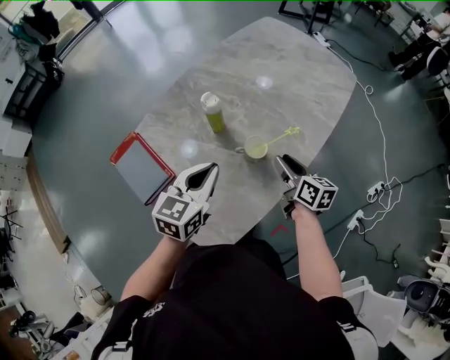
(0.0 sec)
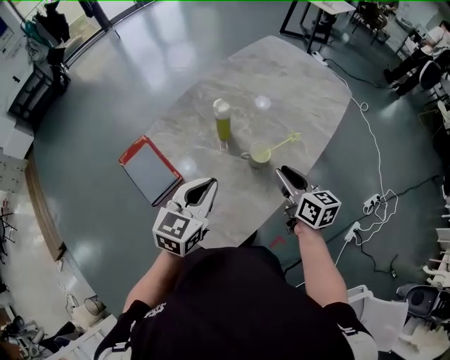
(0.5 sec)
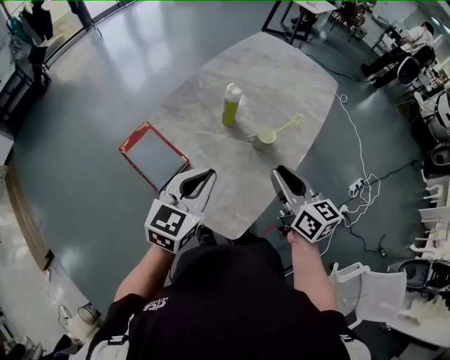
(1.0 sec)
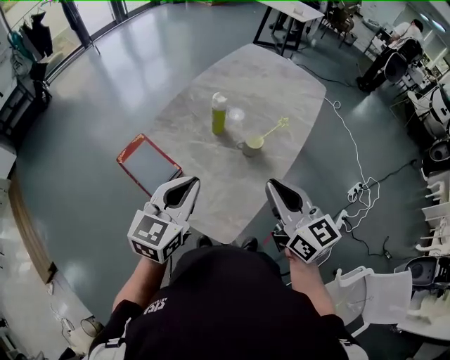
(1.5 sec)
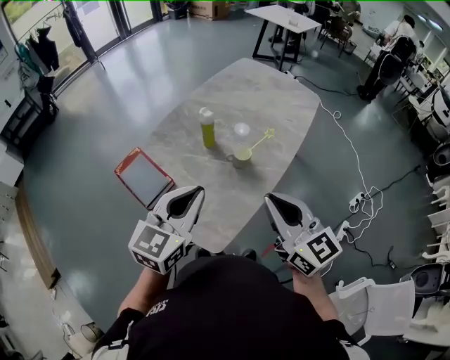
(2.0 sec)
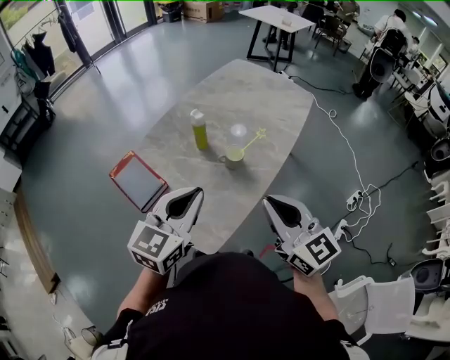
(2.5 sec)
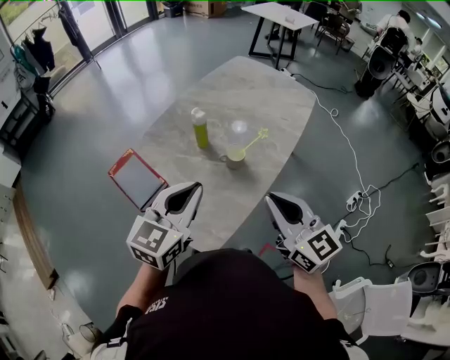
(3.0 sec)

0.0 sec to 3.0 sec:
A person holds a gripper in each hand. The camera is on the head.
0.0 sec to 1.5 sec: The right gripper moves upward, backward and to the left, about 35 cm, rotates approximately 30 degrees, and closes its fingers, while the left gripper is displaced backward, upward and to the left by some 20 cm.
1.5 sec to 3.0 sec: Both grippers travel together to the right, roughly 10 cm.

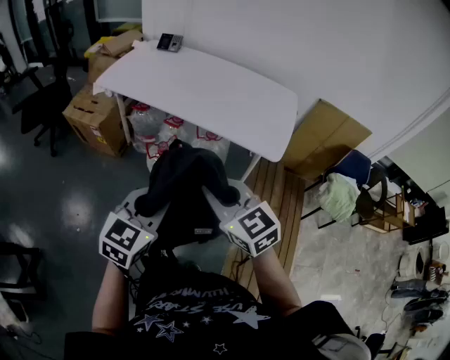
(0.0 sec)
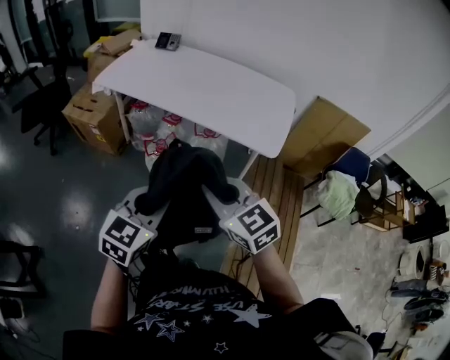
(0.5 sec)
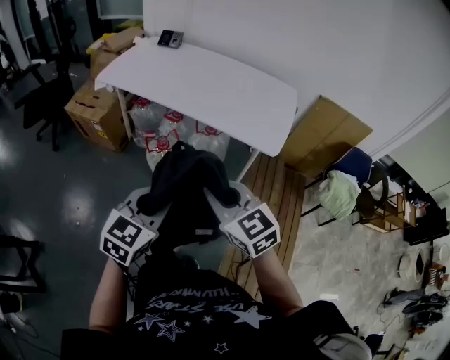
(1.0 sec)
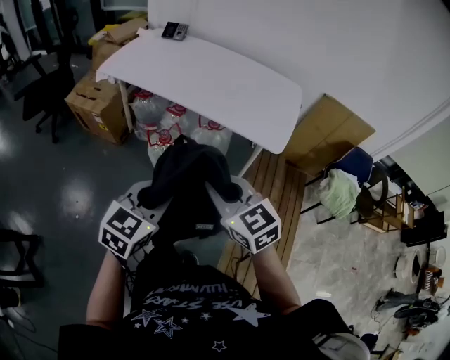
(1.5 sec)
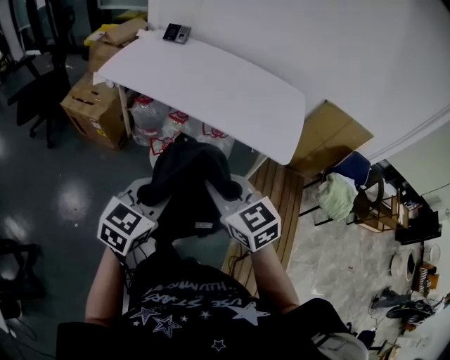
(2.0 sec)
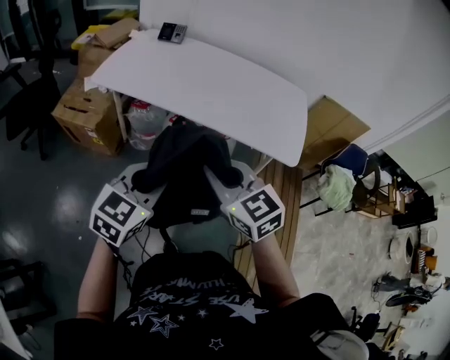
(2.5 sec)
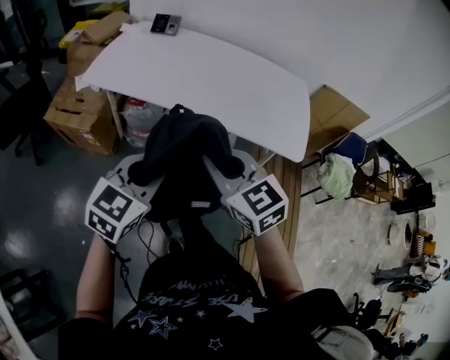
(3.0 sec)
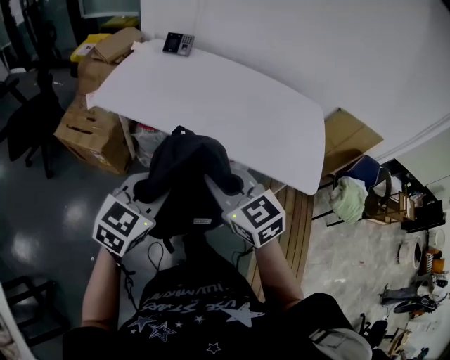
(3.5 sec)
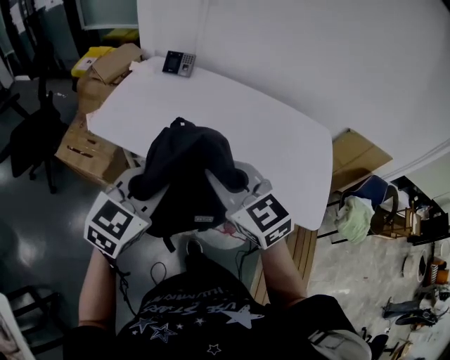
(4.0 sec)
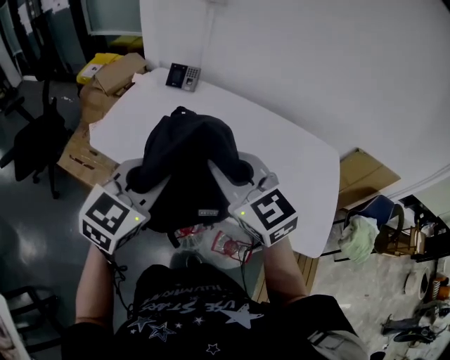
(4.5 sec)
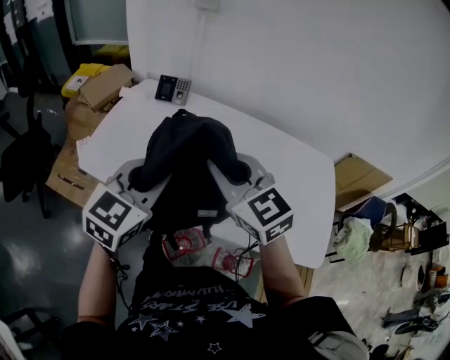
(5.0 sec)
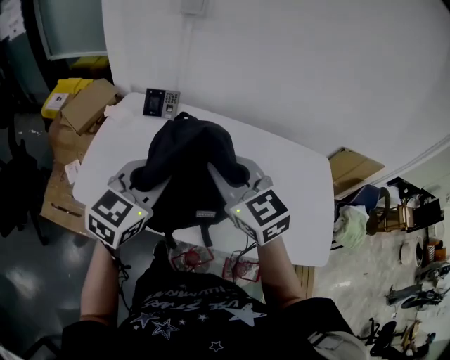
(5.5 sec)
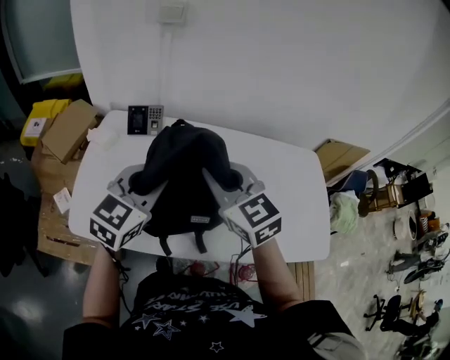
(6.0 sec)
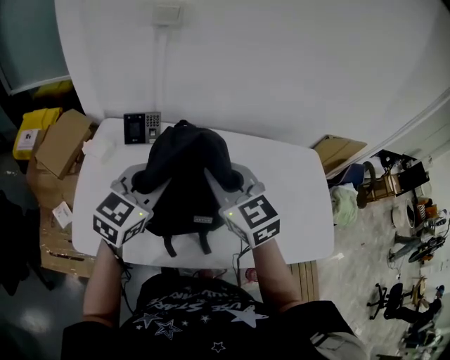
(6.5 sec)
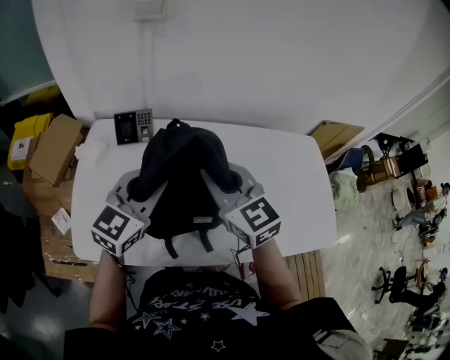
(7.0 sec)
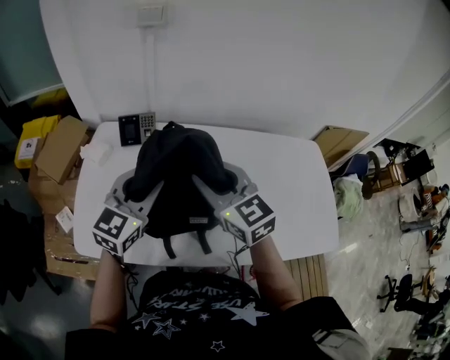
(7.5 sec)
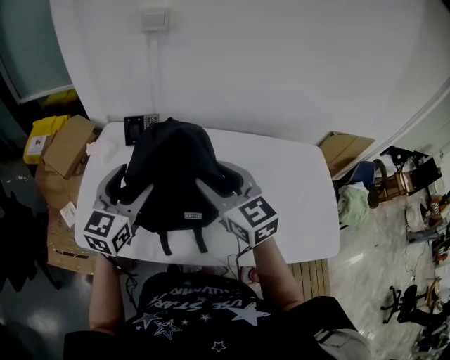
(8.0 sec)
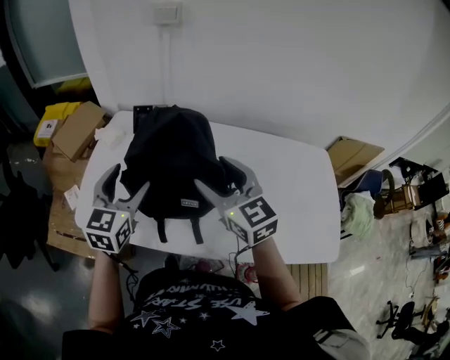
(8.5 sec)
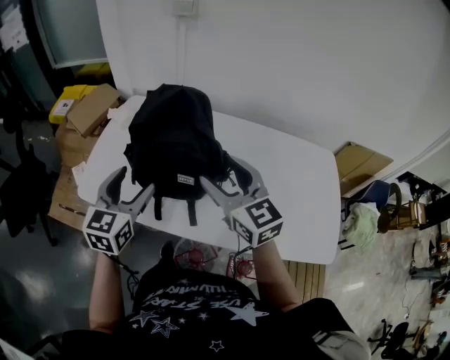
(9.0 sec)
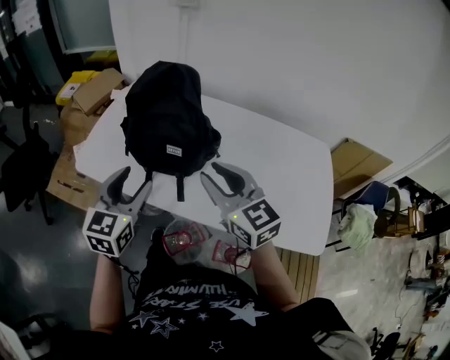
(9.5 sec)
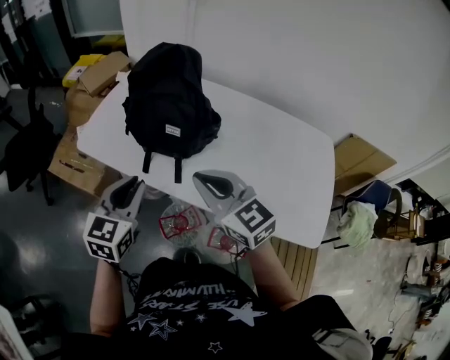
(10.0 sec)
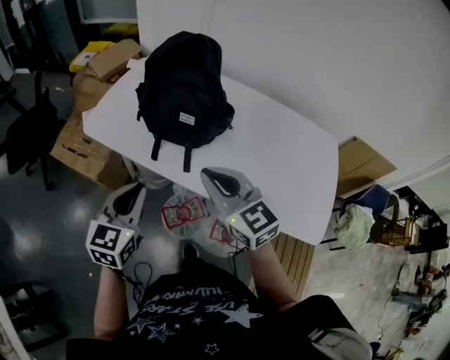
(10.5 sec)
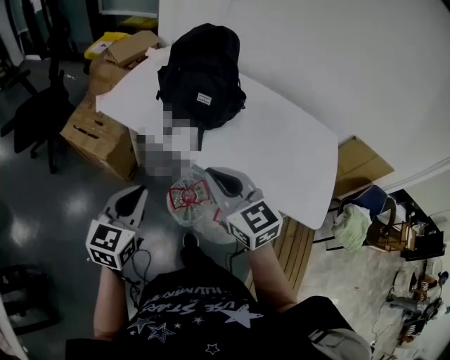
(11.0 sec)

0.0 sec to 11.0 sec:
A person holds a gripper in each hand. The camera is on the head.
0.0 sec to 2.0 sec: The left gripper goes roughly 5 cm forward. The right gripper shifts by approximately 5 cm.
2.0 sec to 3.5 sec: Both grippers move forward and to the left, approximately 25 cm.
3.5 sec to 5.5 sec: The grippers both shift forward by some 40 cm.
5.5 sec to 7.5 sec: The grippers both shift forward by approximately 10 cm. The right gripper opens its fingers.
7.5 sec to 9.0 sec: The right gripper heads backward and to the right, covering approximately 10 cm, and opens up, while the left gripper travels backward by about 15 cm, changes its angle by roughly 30 degrees, and opens.
9.0 sec to 11.0 sec: The two grippers go roughly 30 cm backward. The right gripper closes its fingers. The left gripper closes up.

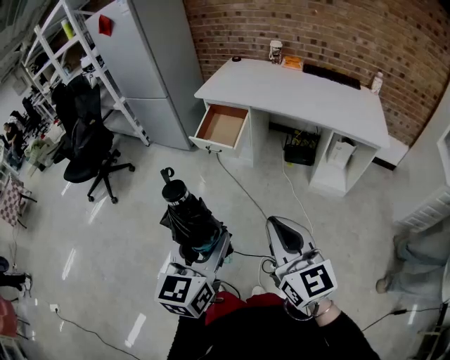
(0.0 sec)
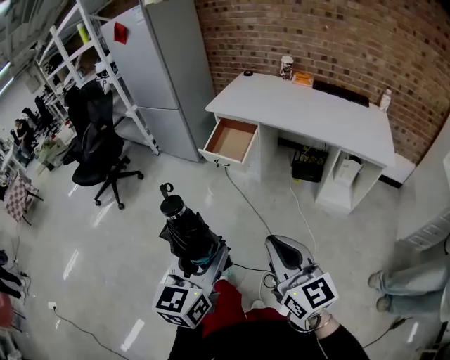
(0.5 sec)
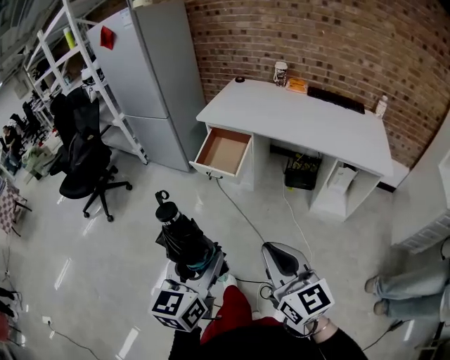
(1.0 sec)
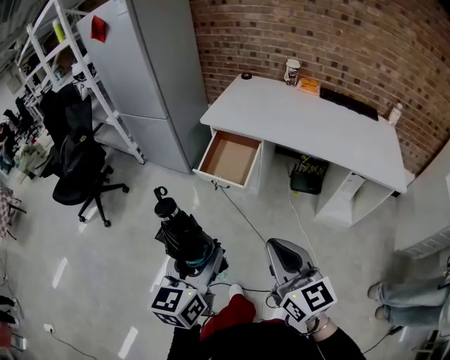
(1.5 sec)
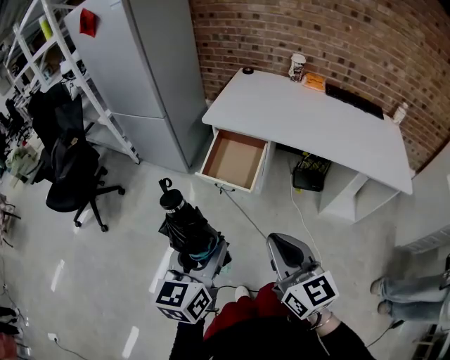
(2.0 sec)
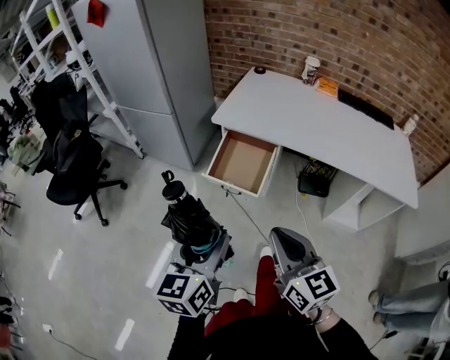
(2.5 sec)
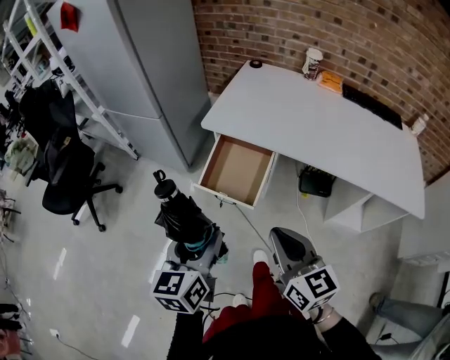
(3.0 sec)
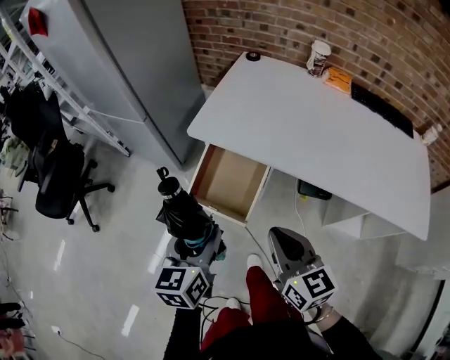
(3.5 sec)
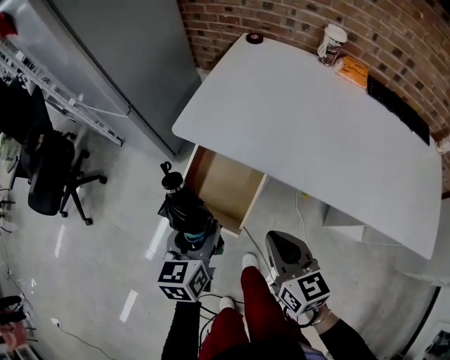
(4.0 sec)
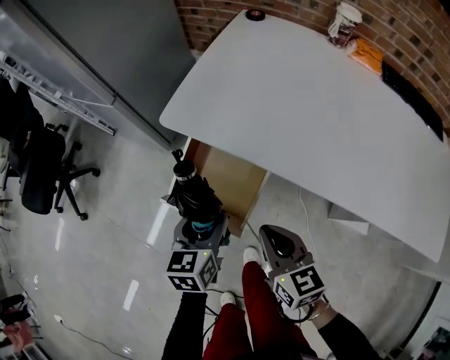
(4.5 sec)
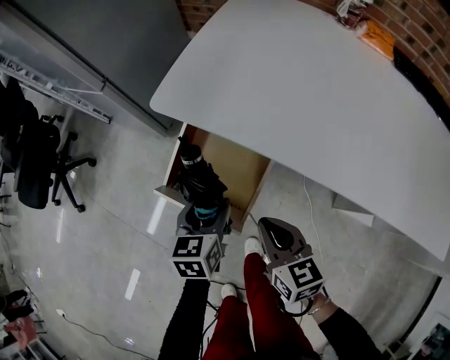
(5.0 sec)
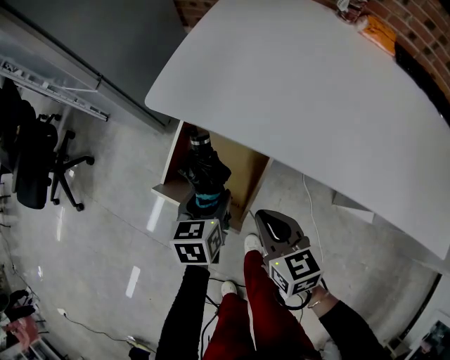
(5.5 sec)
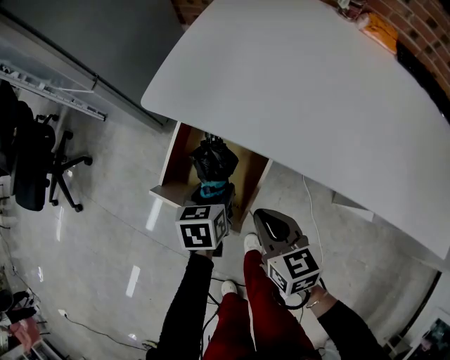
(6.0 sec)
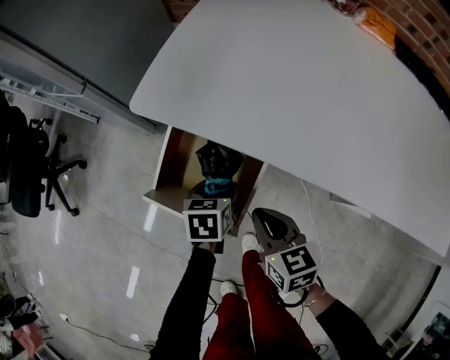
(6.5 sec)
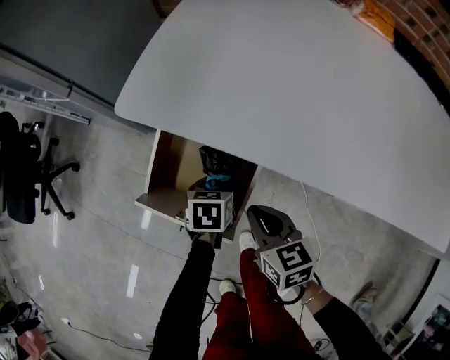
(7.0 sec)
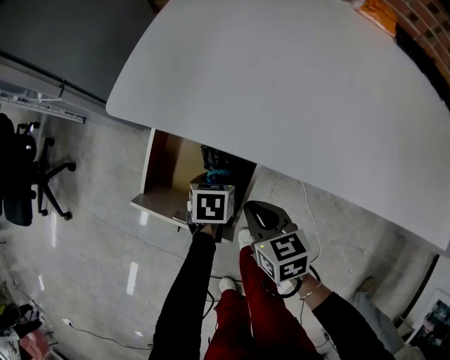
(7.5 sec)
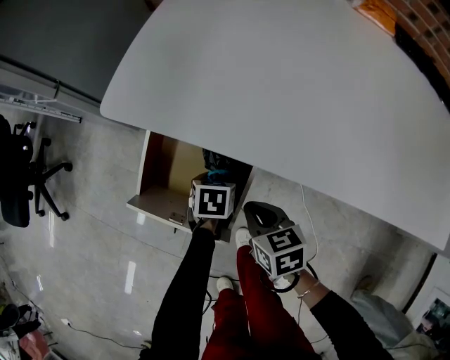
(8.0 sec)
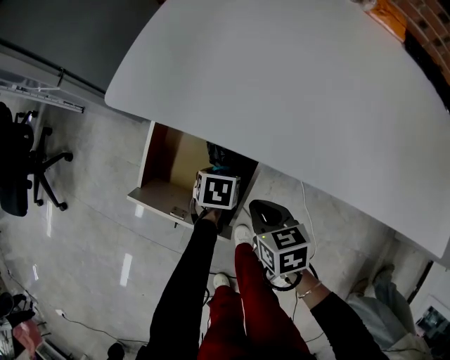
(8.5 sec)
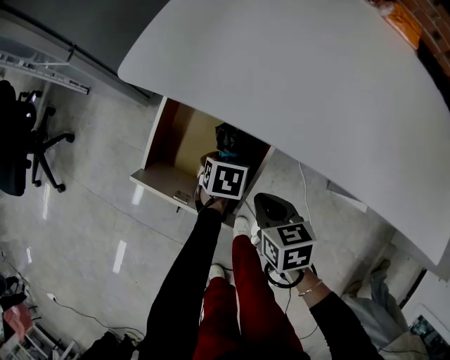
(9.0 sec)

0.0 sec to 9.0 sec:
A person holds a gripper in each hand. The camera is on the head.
0.0 sec to 2.0 sec: The grippers both shift forward by roughly 25 cm.
2.0 sec to 4.5 sec: Both grippers travel together forward and downward, approximately 40 cm. The right gripper turns by some 20 degrees, while the left gripper swivels about 20 degrees.
4.5 sec to 7.0 sec: The left gripper moves downward, roughly 20 cm, and changes its angle by roughly 30 degrees. The right gripper moves downward, some 10 cm.
7.0 sec to 9.0 sec: Both grippers travel together downward, about 5 cm.

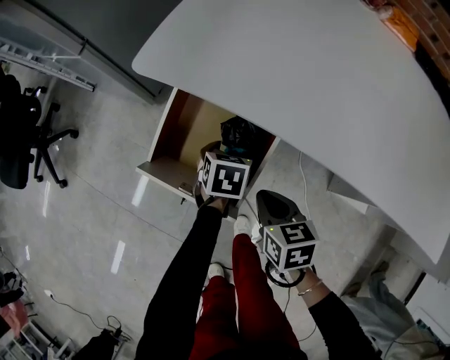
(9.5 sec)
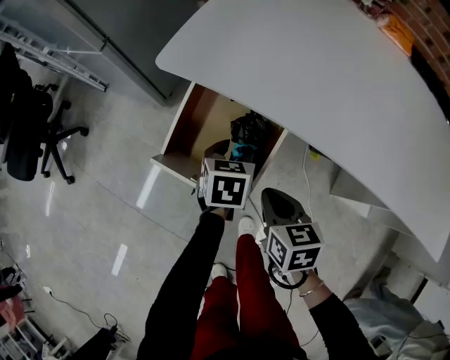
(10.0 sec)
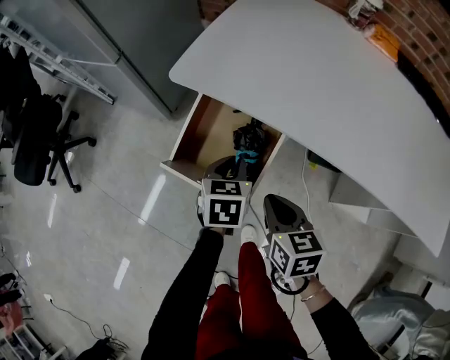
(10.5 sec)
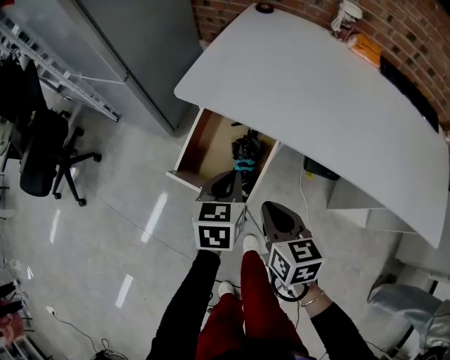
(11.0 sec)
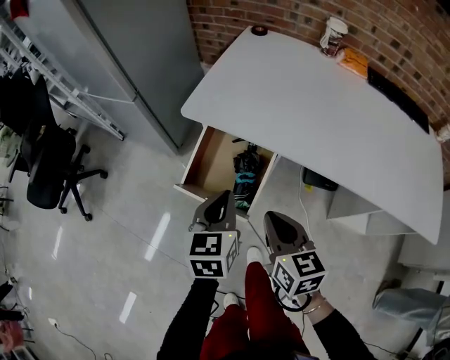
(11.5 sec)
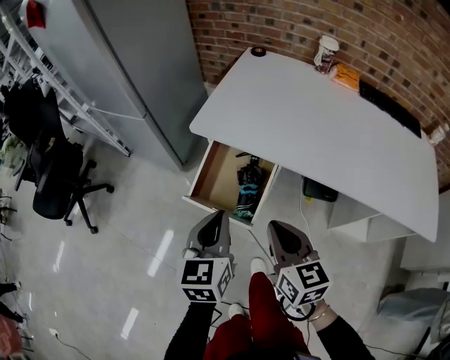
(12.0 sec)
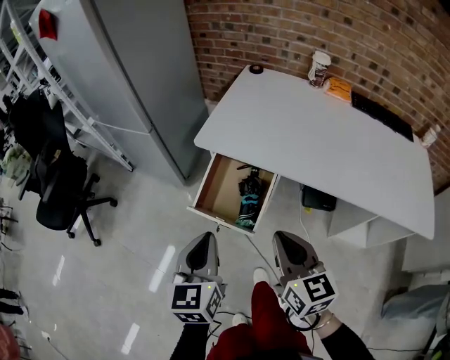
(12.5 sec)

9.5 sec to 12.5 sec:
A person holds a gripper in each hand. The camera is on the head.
9.5 sec to 11.0 sec: The right gripper is displaced upward by some 15 cm, while the left gripper shifts some 20 cm upward and backward, turns by approximately 20 degrees, and closes.
11.0 sec to 12.5 sec: The left gripper moves upward, backward and to the left, about 25 cm. Meanwhile the right gripper shifts roughly 15 cm upward and backward.
